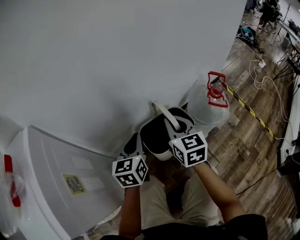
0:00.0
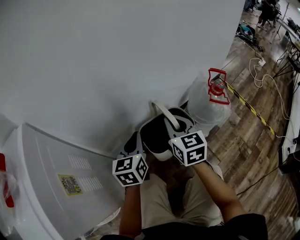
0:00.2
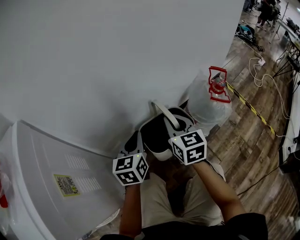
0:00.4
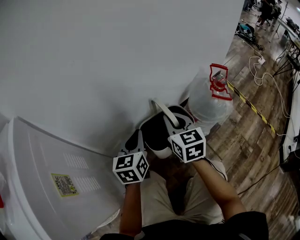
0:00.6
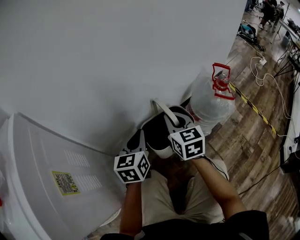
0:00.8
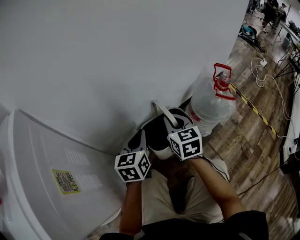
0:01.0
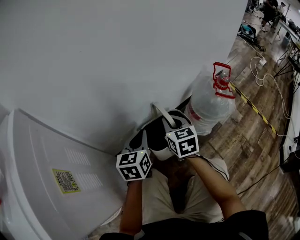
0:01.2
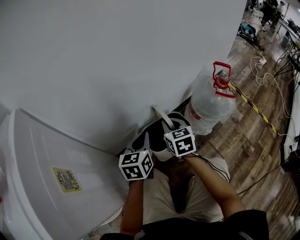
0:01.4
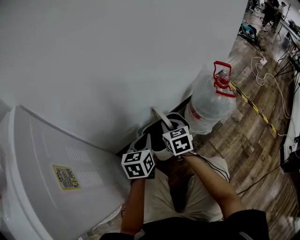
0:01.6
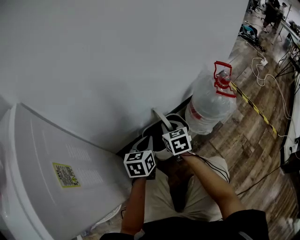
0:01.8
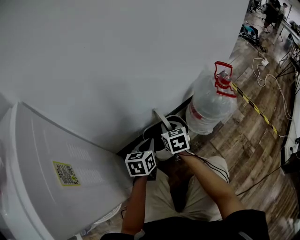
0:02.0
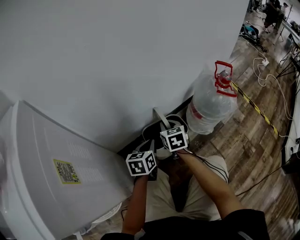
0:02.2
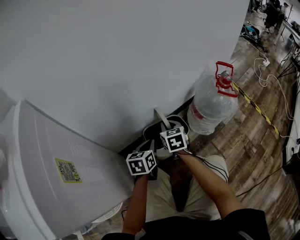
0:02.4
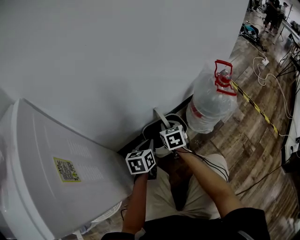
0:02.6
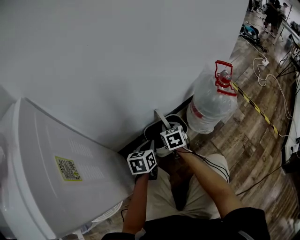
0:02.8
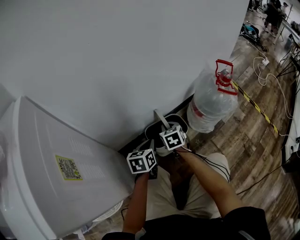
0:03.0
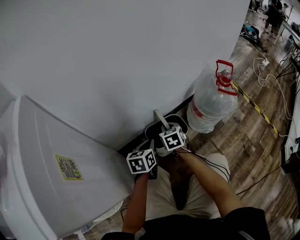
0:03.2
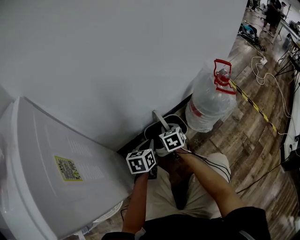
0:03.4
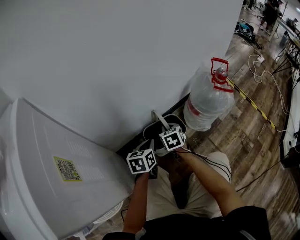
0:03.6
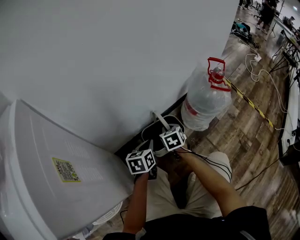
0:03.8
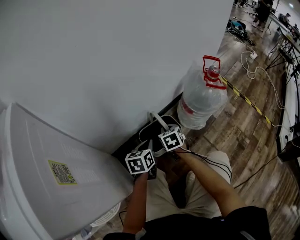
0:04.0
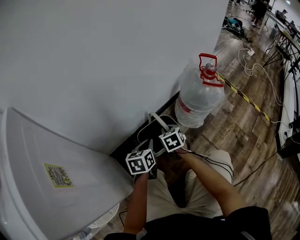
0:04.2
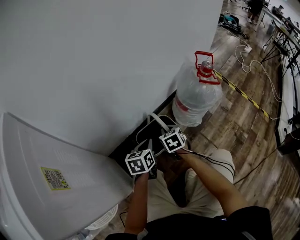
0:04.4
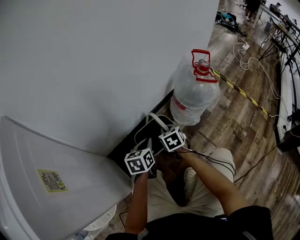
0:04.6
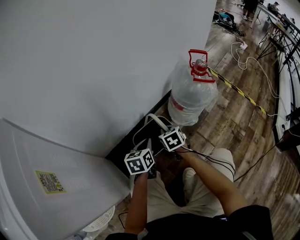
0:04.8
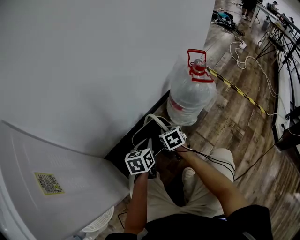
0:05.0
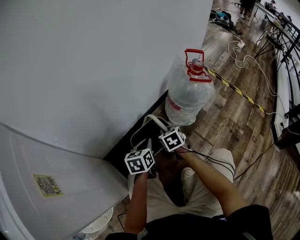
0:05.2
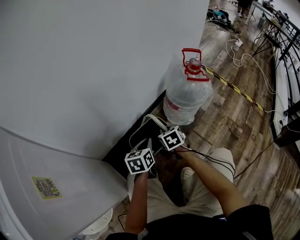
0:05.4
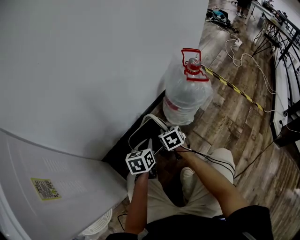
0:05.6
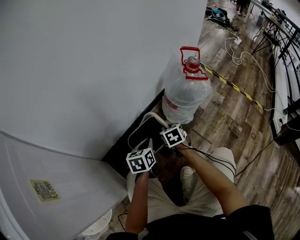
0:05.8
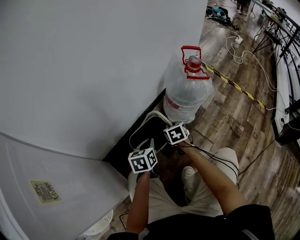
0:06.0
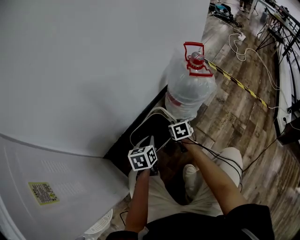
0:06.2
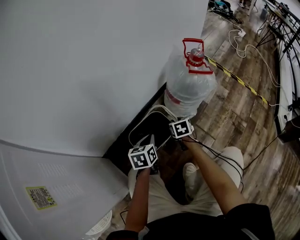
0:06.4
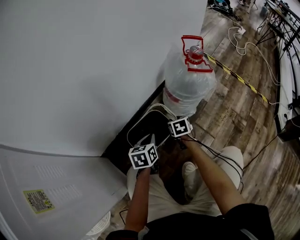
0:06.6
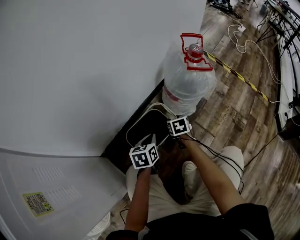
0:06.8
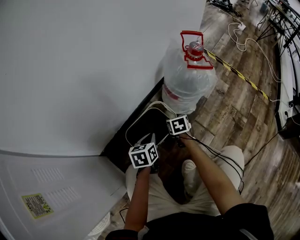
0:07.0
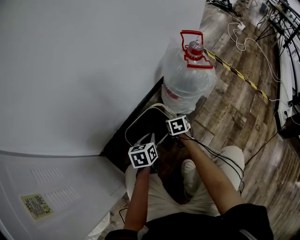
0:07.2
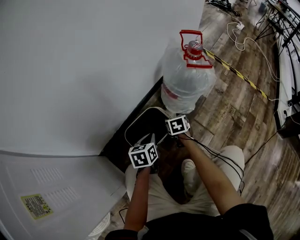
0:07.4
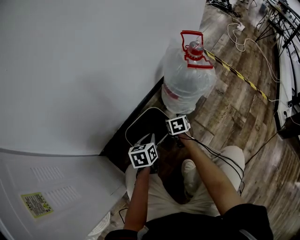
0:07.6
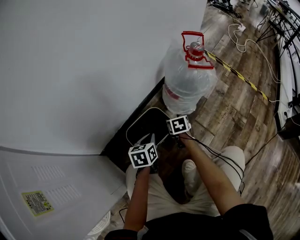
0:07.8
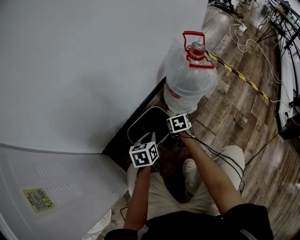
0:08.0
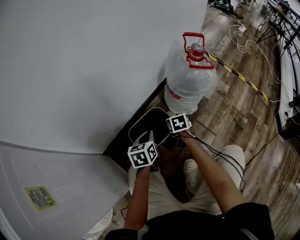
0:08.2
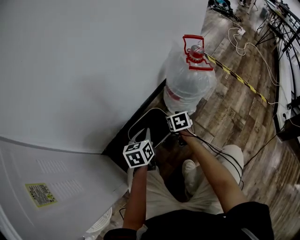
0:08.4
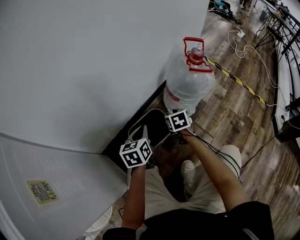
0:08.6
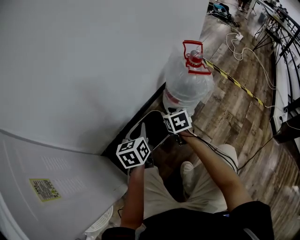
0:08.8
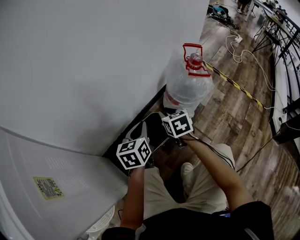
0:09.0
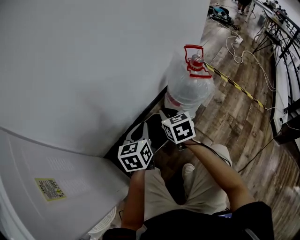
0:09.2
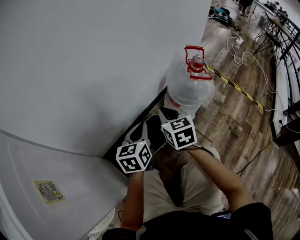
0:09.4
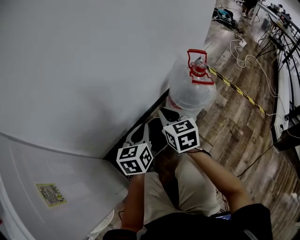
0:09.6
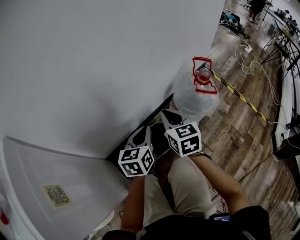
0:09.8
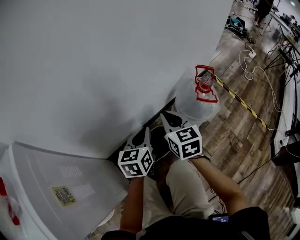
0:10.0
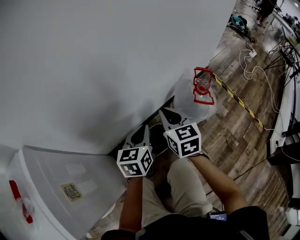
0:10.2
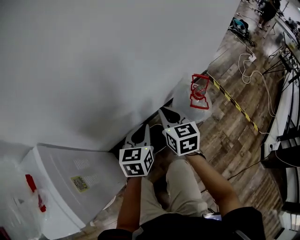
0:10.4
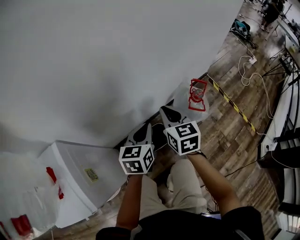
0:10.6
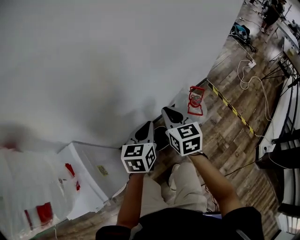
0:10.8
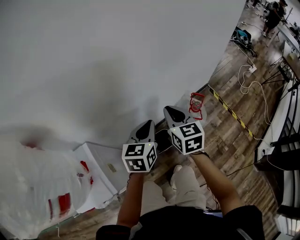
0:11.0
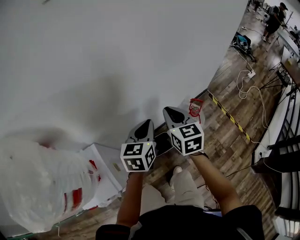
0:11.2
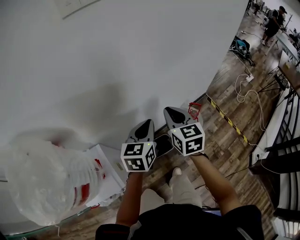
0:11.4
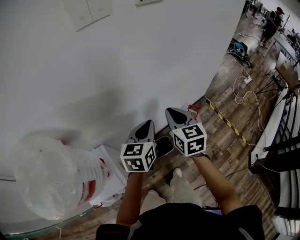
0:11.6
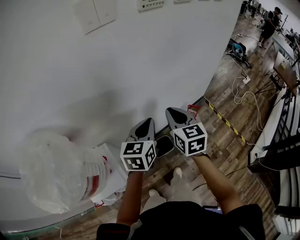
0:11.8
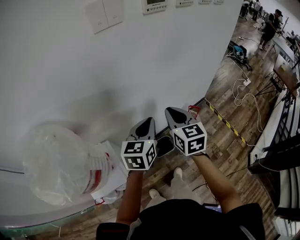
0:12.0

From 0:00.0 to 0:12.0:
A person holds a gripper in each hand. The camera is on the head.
From 0:00.0 to 0:01.6: Both grippers move downward, roughly 15 cm.
From 0:01.6 to 0:03.0: Both grippers travel together downward, approximately 10 cm.
From 0:03.0 to 0:04.4: Both grippers move to the right, some 5 cm.
From 0:04.4 to 0:06.0: The left gripper shifts approximately 5 cm to the right. The right gripper shifts roughly 10 cm to the right and downward.
From 0:06.0 to 0:07.6: The right gripper shifts about 5 cm downward, and opens up.
From 0:07.6 to 0:09.0: Both grippers move upward, roughly 15 cm. The right gripper closes its fingers.
From 0:09.0 to 0:10.4: Both grippers move upward, approximately 20 cm.
From 0:10.4 to 0:12.0: The two grippers go about 50 cm upward.

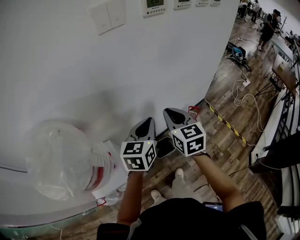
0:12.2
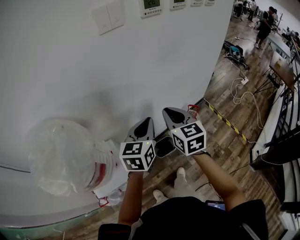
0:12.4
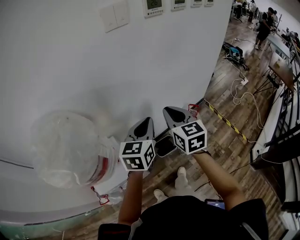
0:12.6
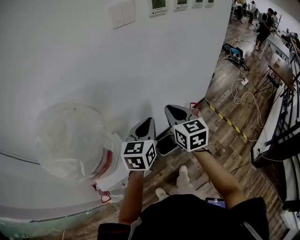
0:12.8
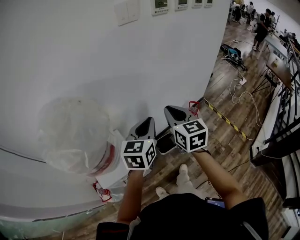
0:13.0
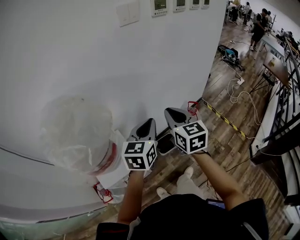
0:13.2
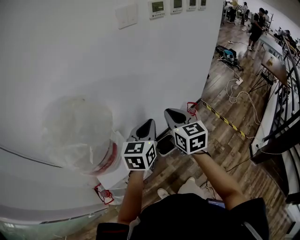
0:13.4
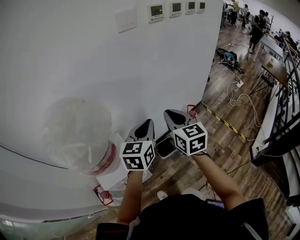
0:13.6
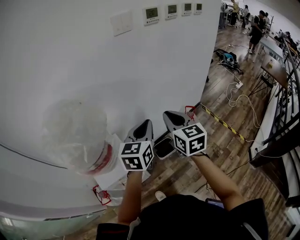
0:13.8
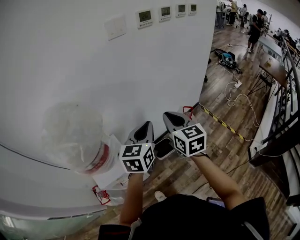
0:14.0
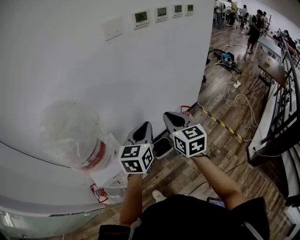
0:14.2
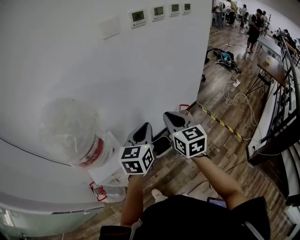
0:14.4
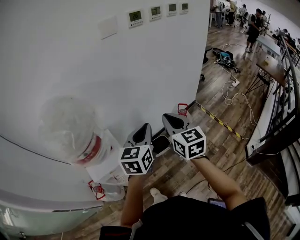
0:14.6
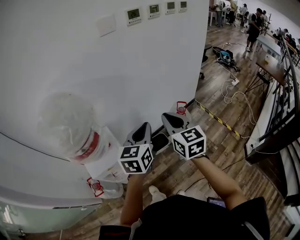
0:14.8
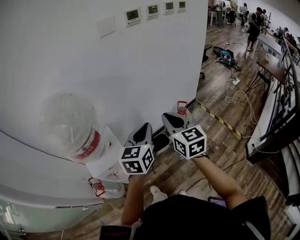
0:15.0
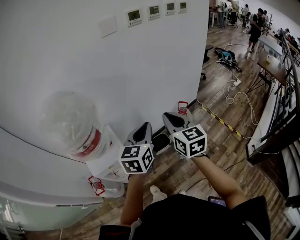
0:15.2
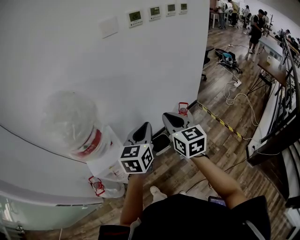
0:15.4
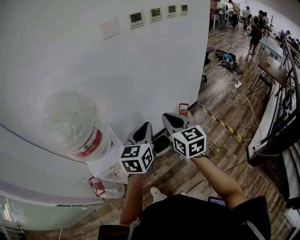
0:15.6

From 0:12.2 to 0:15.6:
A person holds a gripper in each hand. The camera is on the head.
From 0:12.2 to 0:13.8: The two grippers go approximately 15 cm backward and upward.
From 0:13.8 to 0:15.6: Both grippers travel together backward, some 5 cm.

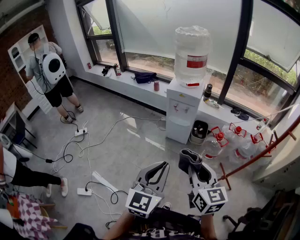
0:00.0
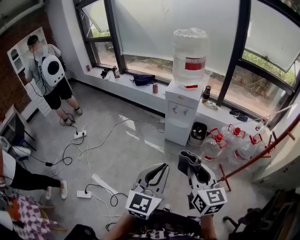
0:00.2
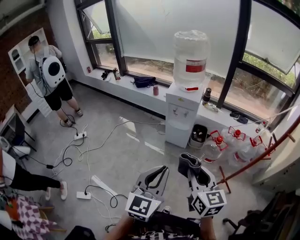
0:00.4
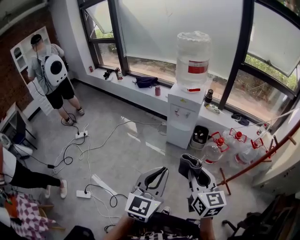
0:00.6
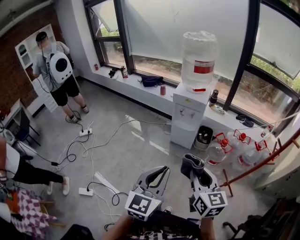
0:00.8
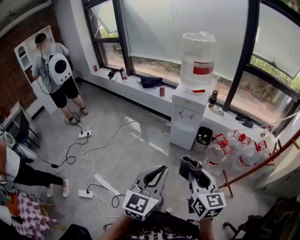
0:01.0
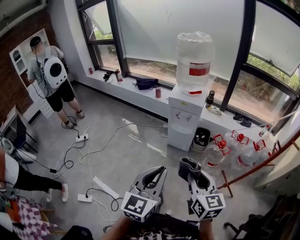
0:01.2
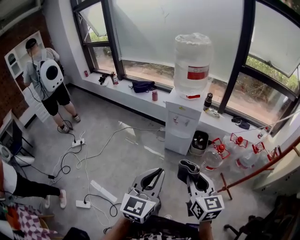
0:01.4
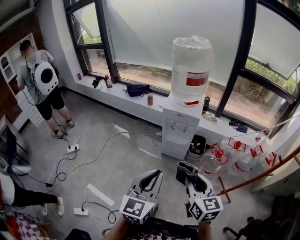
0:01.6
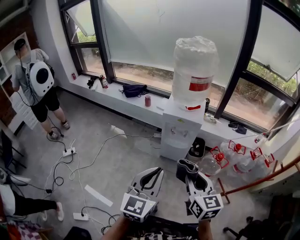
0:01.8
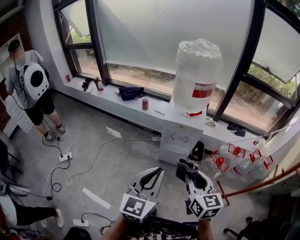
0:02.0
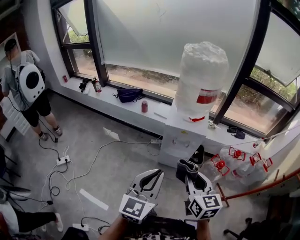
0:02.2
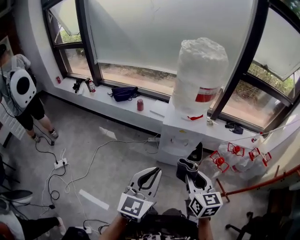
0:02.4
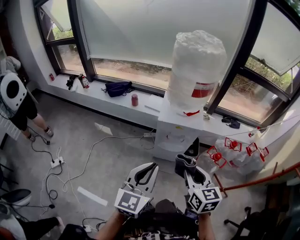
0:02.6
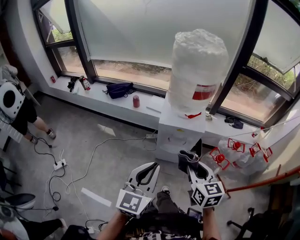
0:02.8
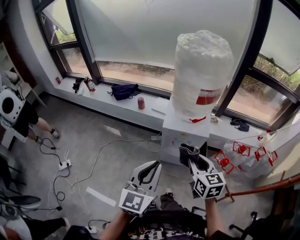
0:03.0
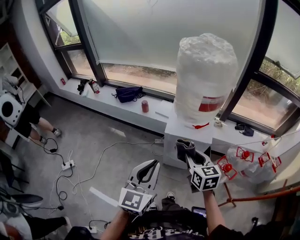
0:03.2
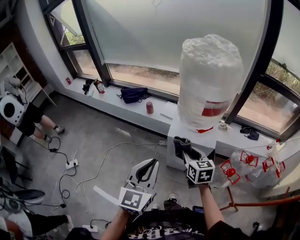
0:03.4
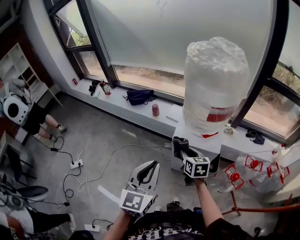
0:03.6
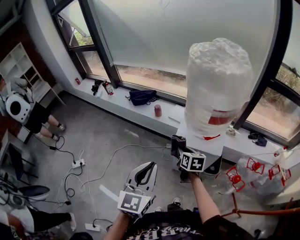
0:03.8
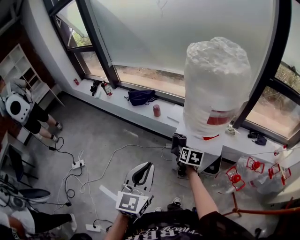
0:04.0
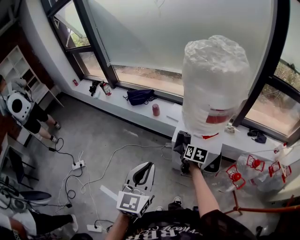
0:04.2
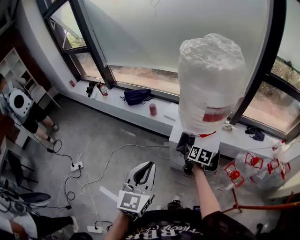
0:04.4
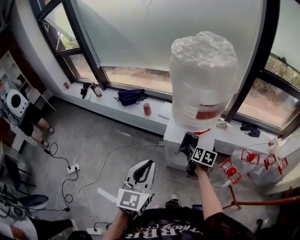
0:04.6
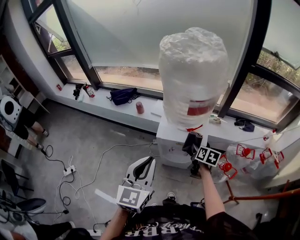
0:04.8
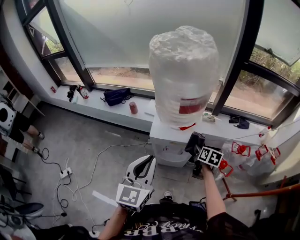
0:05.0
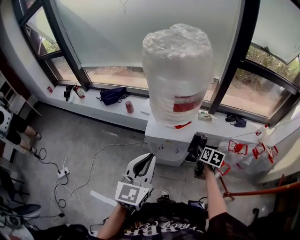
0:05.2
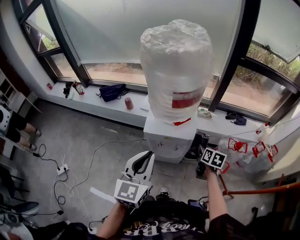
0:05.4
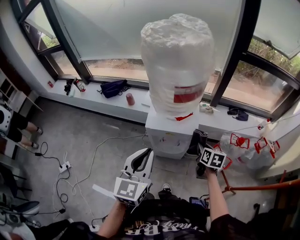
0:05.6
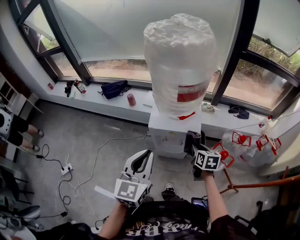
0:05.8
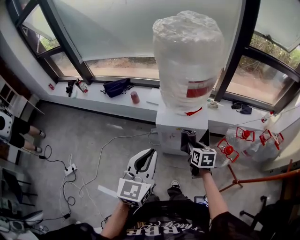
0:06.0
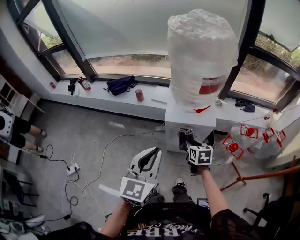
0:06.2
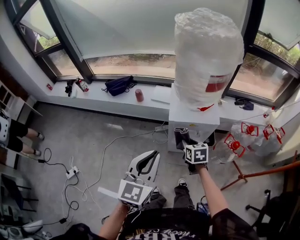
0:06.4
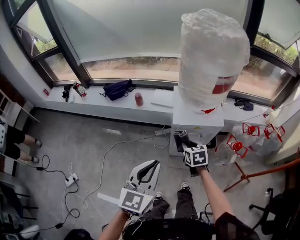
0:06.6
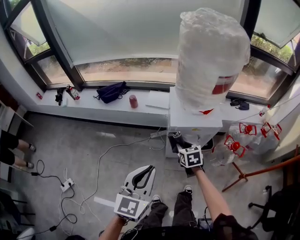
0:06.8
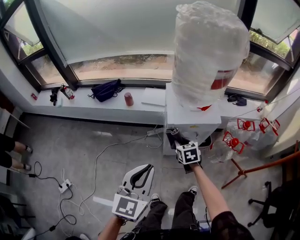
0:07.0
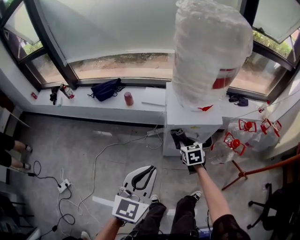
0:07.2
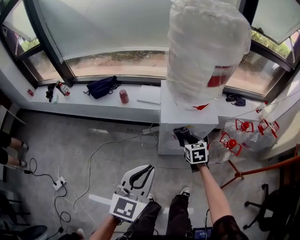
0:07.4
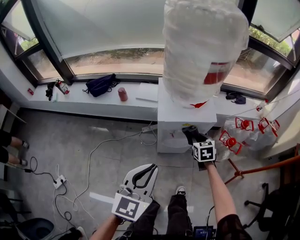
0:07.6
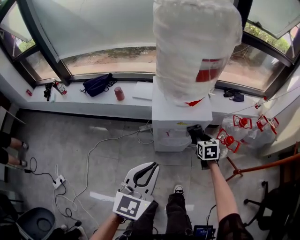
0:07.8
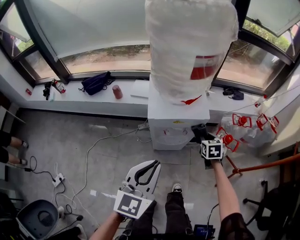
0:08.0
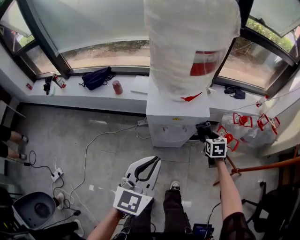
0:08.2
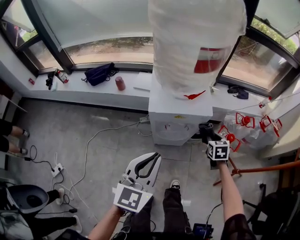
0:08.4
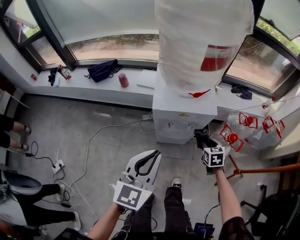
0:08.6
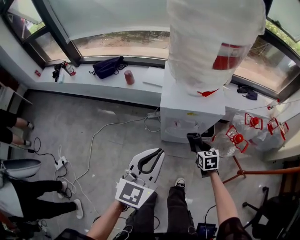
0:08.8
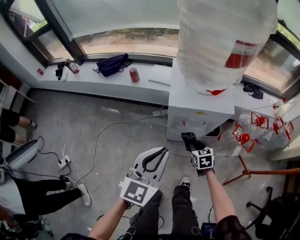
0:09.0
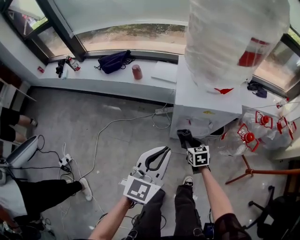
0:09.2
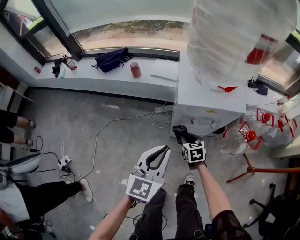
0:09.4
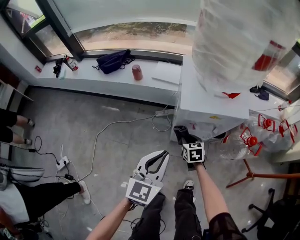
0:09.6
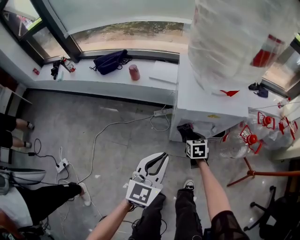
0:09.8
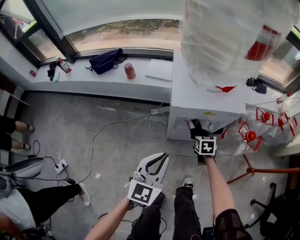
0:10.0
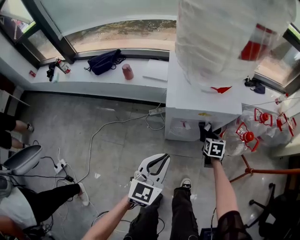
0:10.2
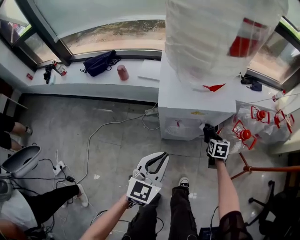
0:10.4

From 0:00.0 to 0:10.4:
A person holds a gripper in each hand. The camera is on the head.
From 0:00.0 to 0:01.4: Both grippers travel together forward, about 10 cm.
From 0:01.4 to 0:03.0: Both grippers travel together forward, roughly 35 cm.
From 0:03.0 to 0:04.4: The right gripper goes some 25 cm forward and downward, and changes its angle by approximately 30 degrees, while the left gripper is displaced forward by approximately 10 cm.
From 0:04.4 to 0:06.0: The right gripper moves backward, roughly 10 cm, and reaches some 20 cm to the right, then returns.
From 0:06.0 to 0:07.4: Both grippers travel together downward and to the left, roughly 15 cm.
From 0:07.4 to 0:09.0: The left gripper heads downward, covering some 5 cm. The right gripper goes roughly 15 cm downward and backward, and reaches approximately 20 cm to the right, then returns.
From 0:09.0 to 0:10.4: The left gripper goes some 10 cm downward, while the right gripper shifts approximately 20 cm to the right, forward and downward, and turns by about 20 degrees.
